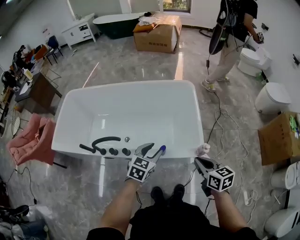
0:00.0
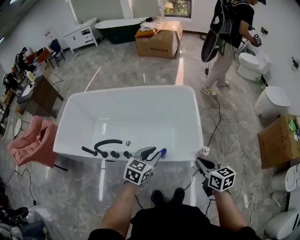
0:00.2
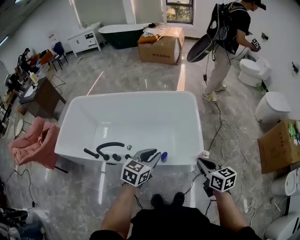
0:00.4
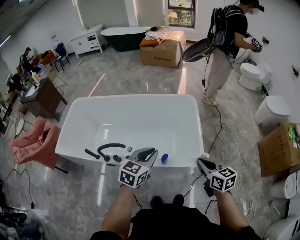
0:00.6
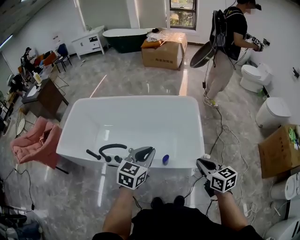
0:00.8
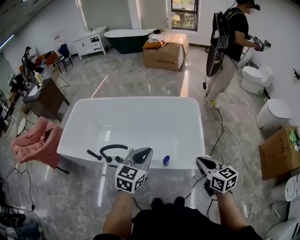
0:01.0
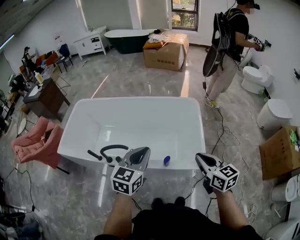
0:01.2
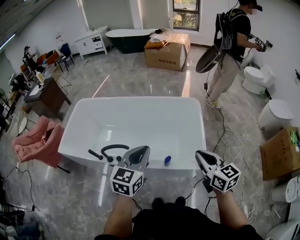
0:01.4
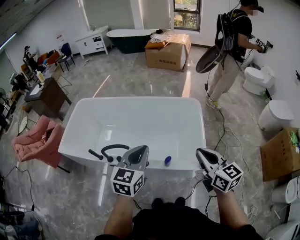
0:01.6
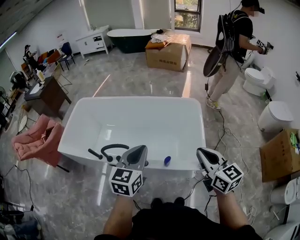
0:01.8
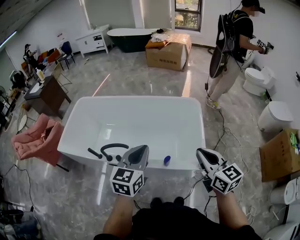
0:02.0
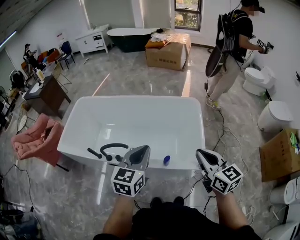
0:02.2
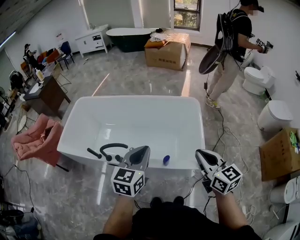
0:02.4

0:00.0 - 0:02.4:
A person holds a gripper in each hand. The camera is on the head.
0:00.0 - 0:01.2: The left gripper moves upward, about 20 cm, and closes. The right gripper moves upward, roughly 10 cm.
0:01.2 - 0:02.4: The right gripper moves upward, roughly 5 cm.

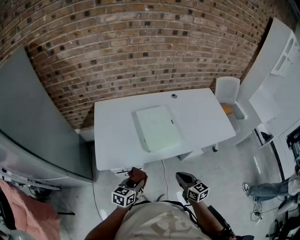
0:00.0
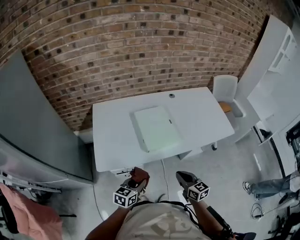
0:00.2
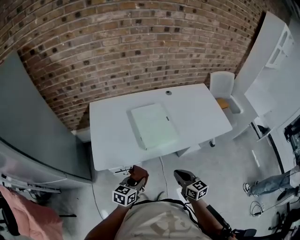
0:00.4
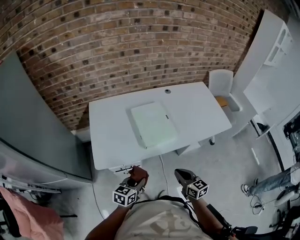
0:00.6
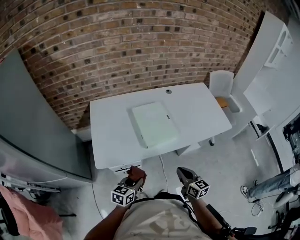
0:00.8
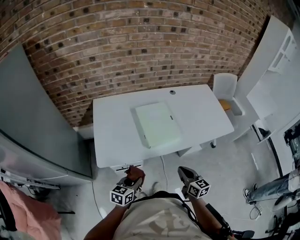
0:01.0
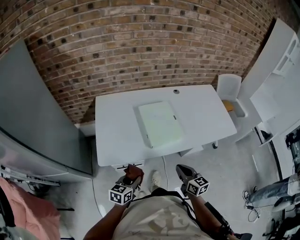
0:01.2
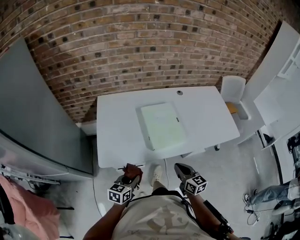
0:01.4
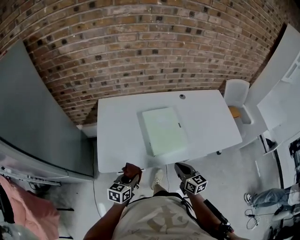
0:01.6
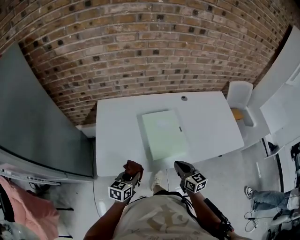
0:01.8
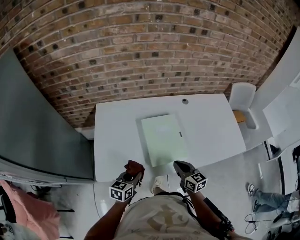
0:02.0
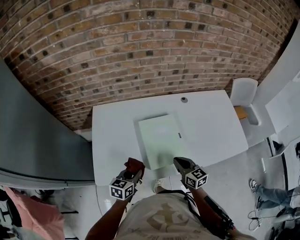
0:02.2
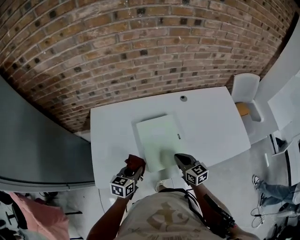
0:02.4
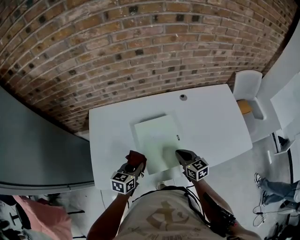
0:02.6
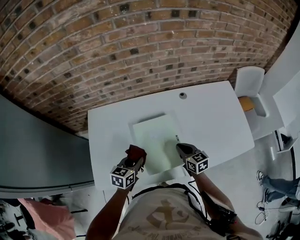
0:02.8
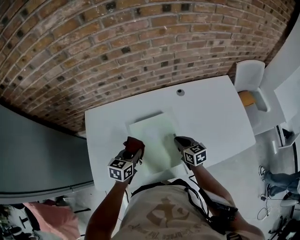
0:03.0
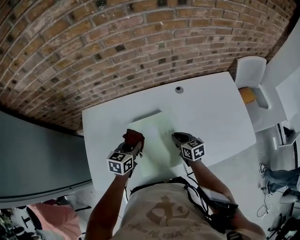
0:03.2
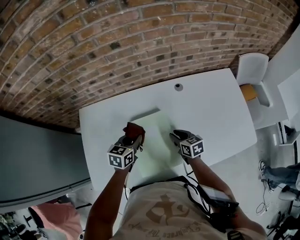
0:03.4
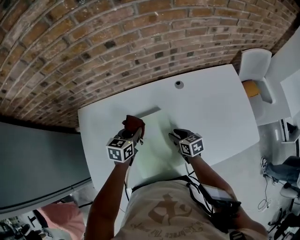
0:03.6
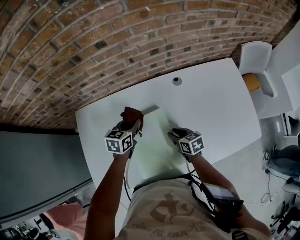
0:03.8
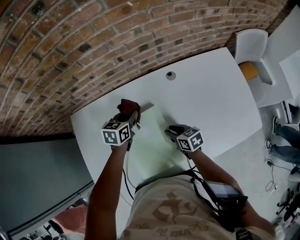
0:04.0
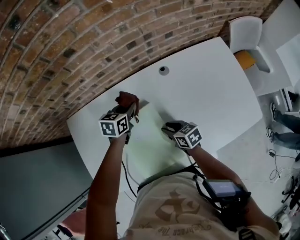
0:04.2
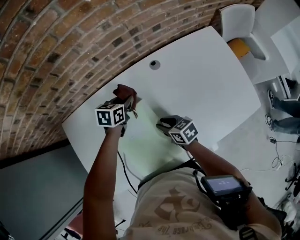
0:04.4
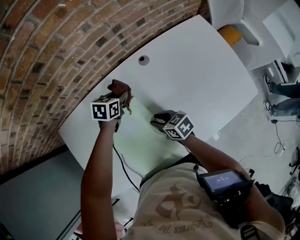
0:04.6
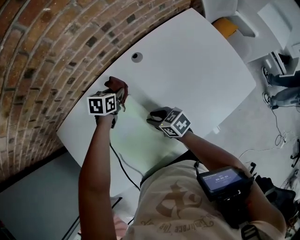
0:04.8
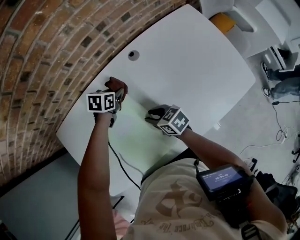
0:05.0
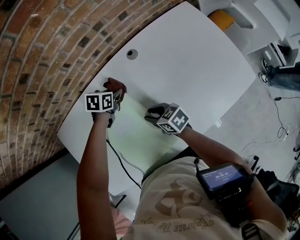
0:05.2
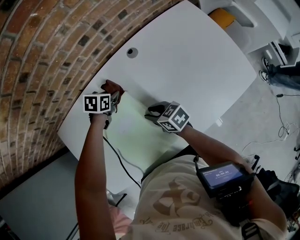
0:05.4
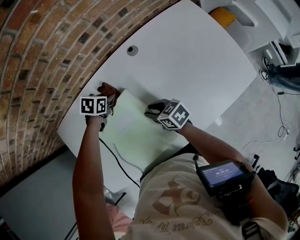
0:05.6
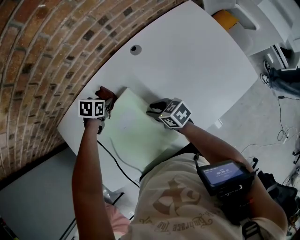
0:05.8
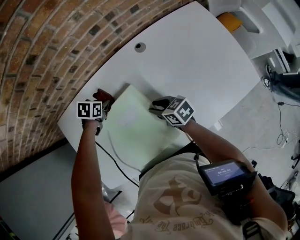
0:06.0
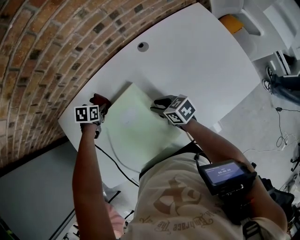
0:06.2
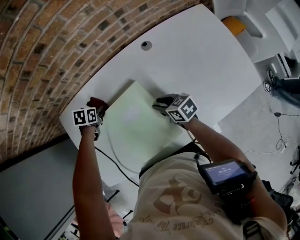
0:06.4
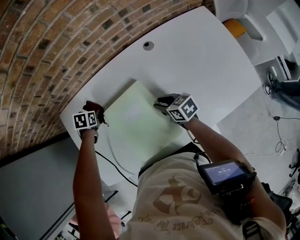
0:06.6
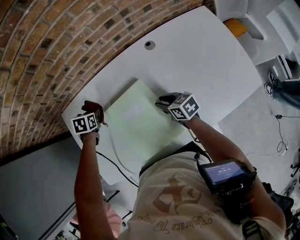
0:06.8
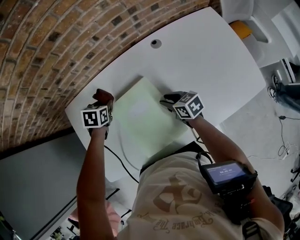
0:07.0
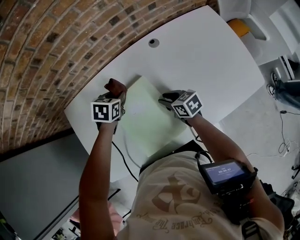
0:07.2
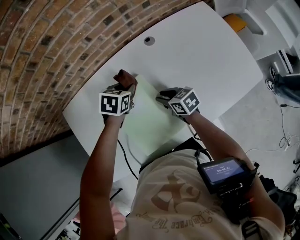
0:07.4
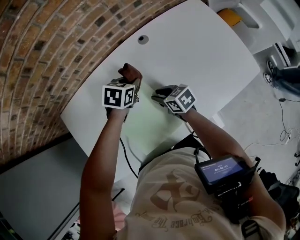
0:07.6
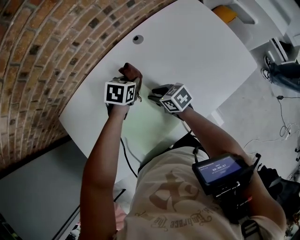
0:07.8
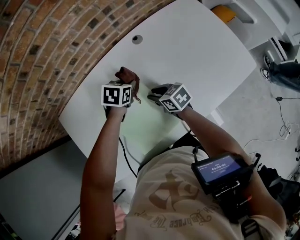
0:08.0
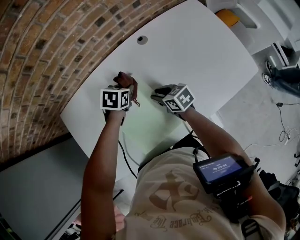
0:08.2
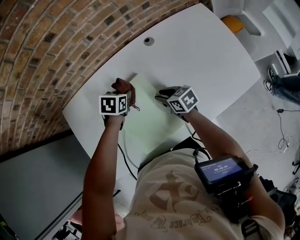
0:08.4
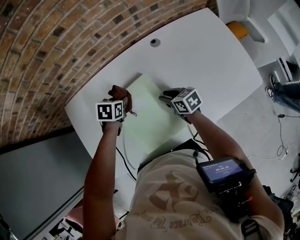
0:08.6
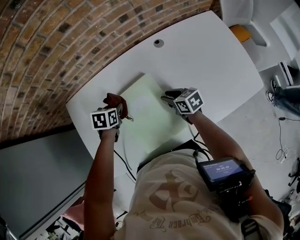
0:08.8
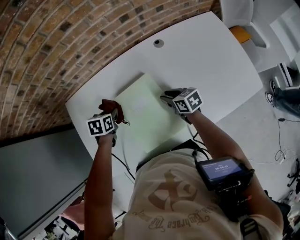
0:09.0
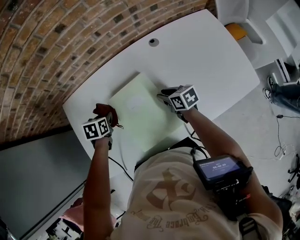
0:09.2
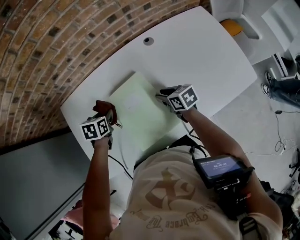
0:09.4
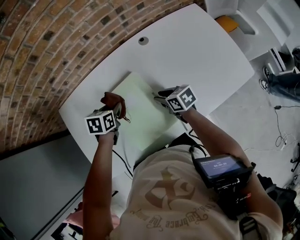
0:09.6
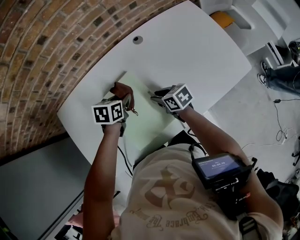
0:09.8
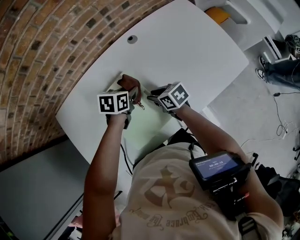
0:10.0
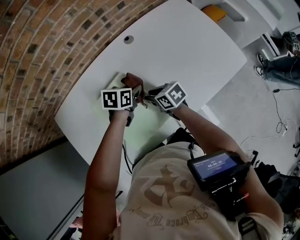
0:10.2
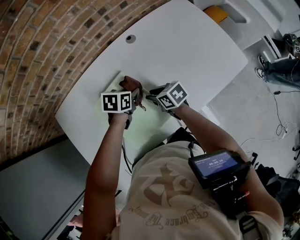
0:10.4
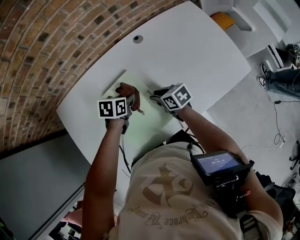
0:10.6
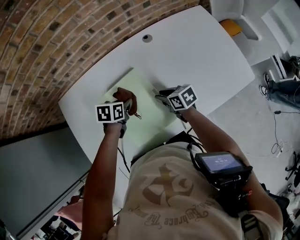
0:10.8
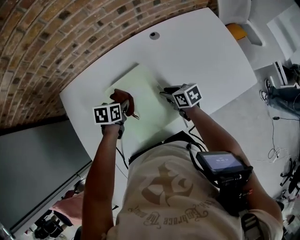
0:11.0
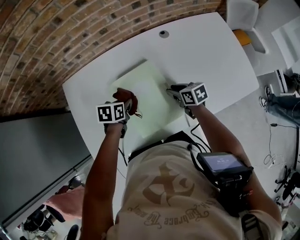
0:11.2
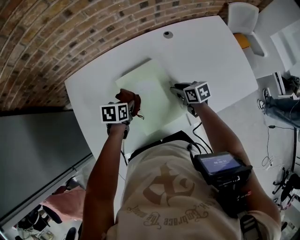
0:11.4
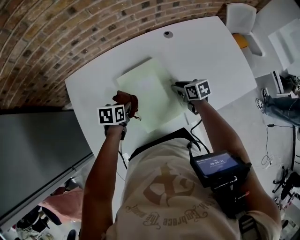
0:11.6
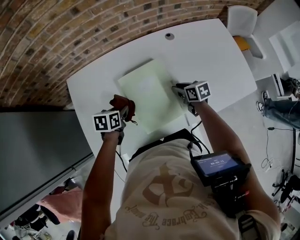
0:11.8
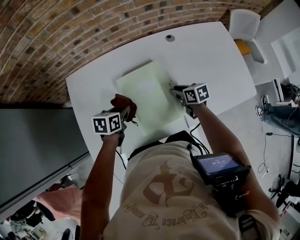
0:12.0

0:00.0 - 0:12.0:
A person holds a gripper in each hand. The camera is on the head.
0:00.0 - 0:01.6: The left gripper travels forward and to the left by roughly 5 cm, while the right gripper is displaced forward by roughly 10 cm.
0:01.6 - 0:03.0: Both grippers move forward, about 30 cm.
0:03.0 - 0:04.4: The right gripper goes approximately 5 cm downward, and opens up. Meanwhile the left gripper travels forward and to the right by approximately 25 cm.
0:04.4 - 0:06.0: The left gripper moves some 15 cm, and rotates approximately 30 degrees.
0:06.0 - 0:07.6: The left gripper moves about 15 cm.
0:07.6 - 0:09.0: The left gripper heads to the left, covering approximately 20 cm, and turns by about 30 degrees.
0:09.0 - 0:10.4: The left gripper ends up about 20 cm from where it was, and changes its angle by roughly 20 degrees.
0:10.4 - 0:12.0: The left gripper moves to the left and backward, some 20 cm, and rotates some 20 degrees.

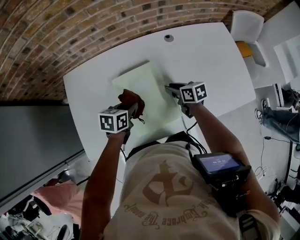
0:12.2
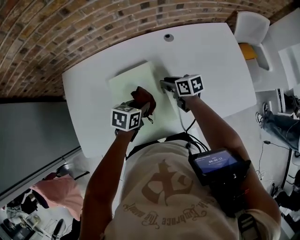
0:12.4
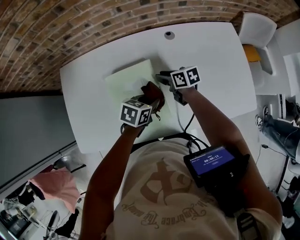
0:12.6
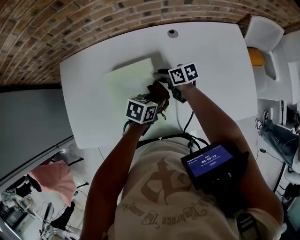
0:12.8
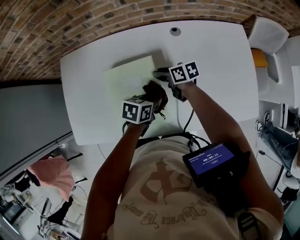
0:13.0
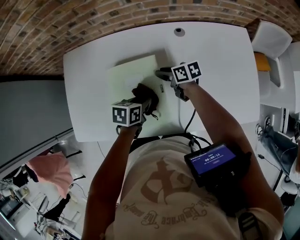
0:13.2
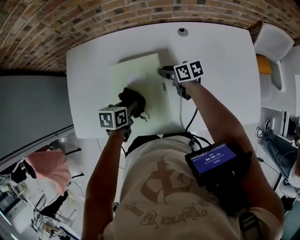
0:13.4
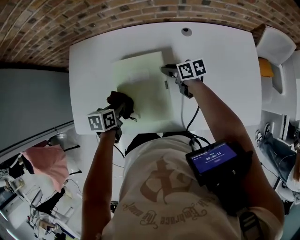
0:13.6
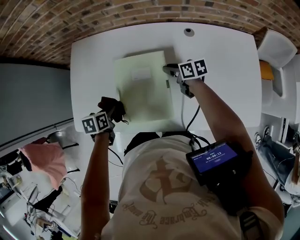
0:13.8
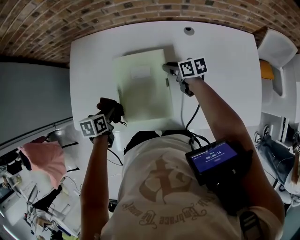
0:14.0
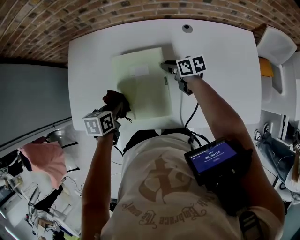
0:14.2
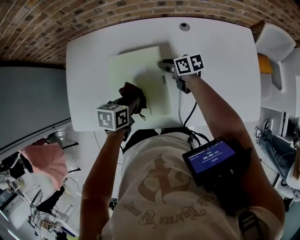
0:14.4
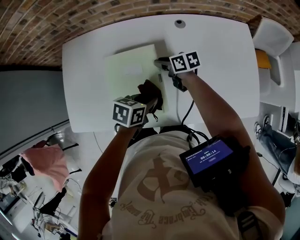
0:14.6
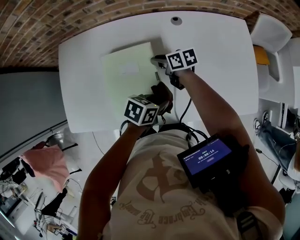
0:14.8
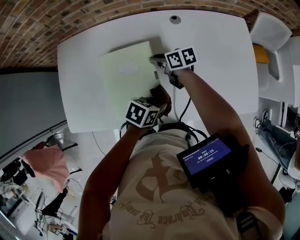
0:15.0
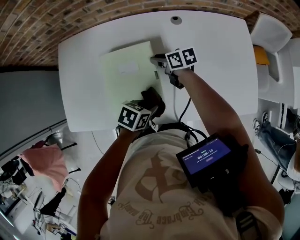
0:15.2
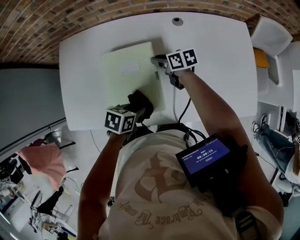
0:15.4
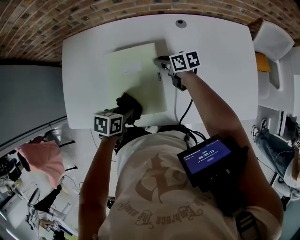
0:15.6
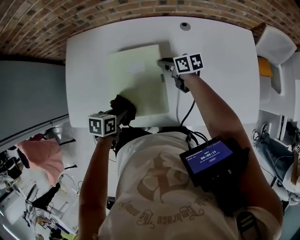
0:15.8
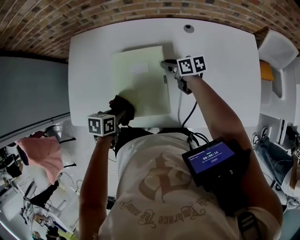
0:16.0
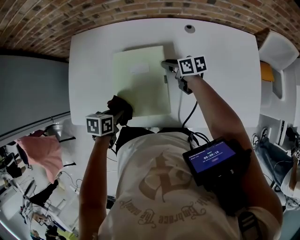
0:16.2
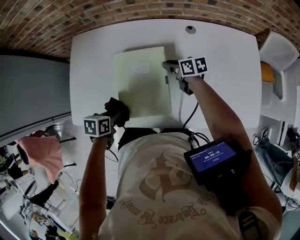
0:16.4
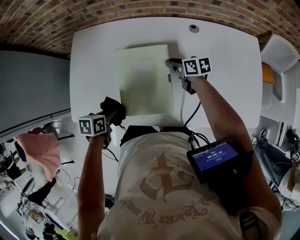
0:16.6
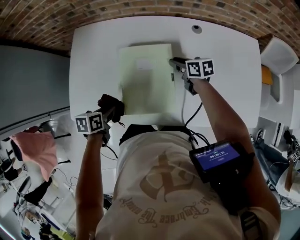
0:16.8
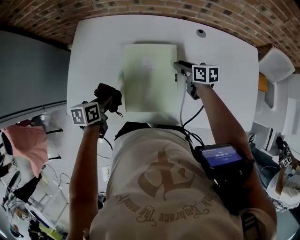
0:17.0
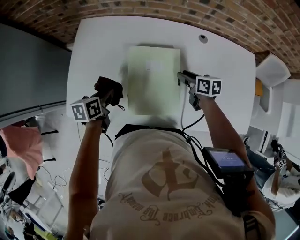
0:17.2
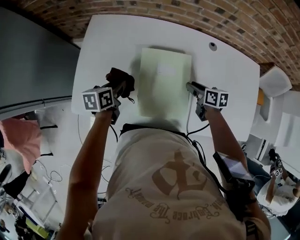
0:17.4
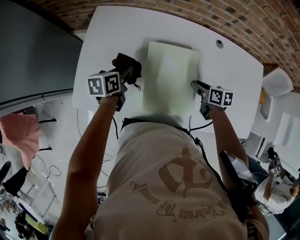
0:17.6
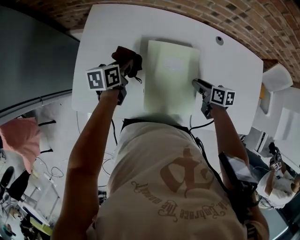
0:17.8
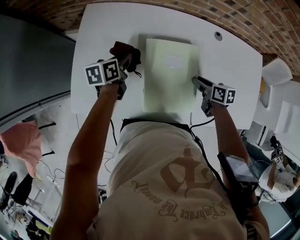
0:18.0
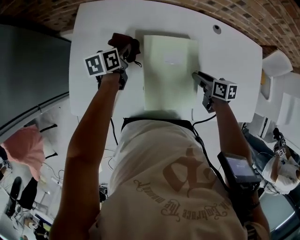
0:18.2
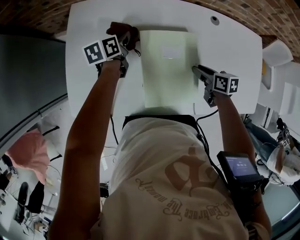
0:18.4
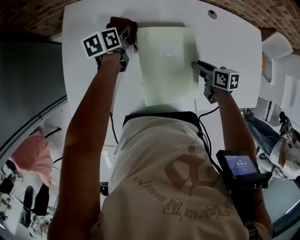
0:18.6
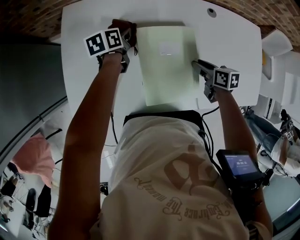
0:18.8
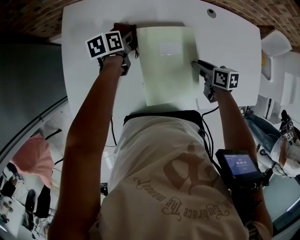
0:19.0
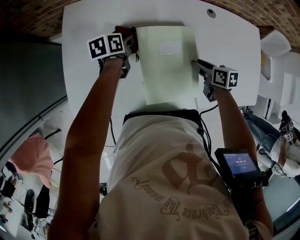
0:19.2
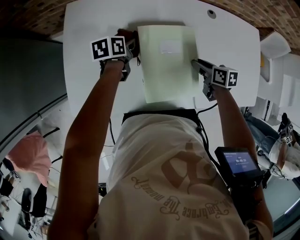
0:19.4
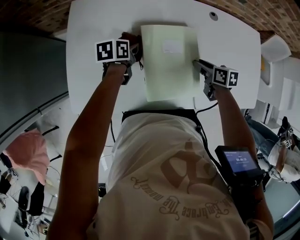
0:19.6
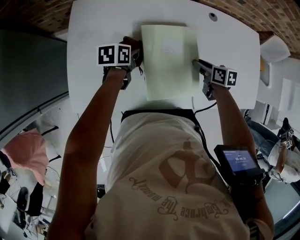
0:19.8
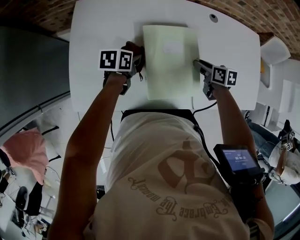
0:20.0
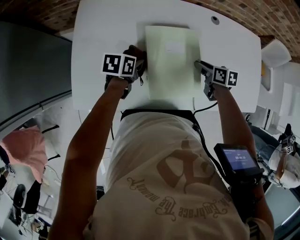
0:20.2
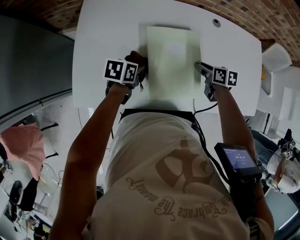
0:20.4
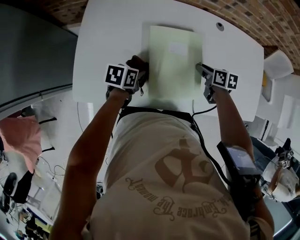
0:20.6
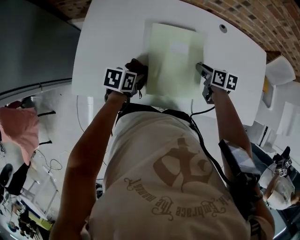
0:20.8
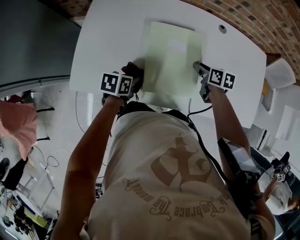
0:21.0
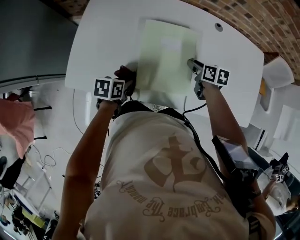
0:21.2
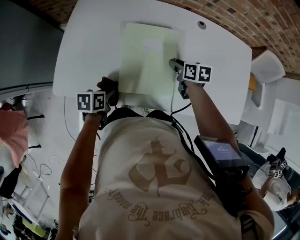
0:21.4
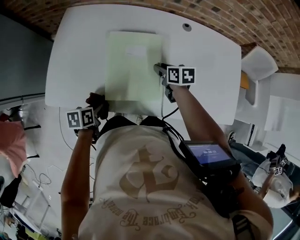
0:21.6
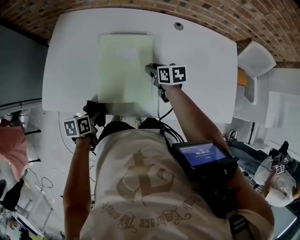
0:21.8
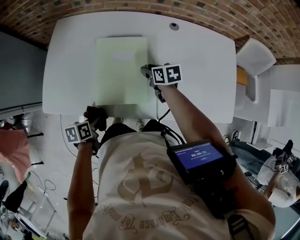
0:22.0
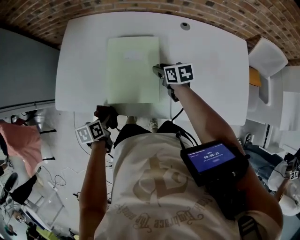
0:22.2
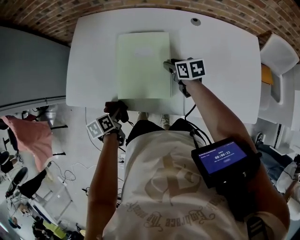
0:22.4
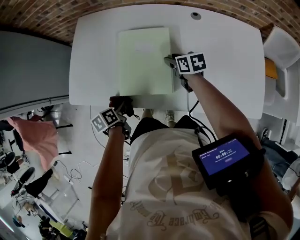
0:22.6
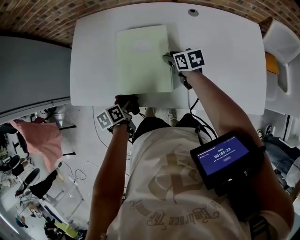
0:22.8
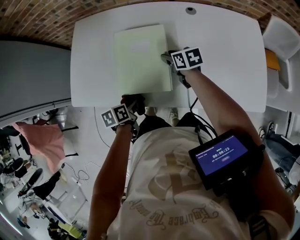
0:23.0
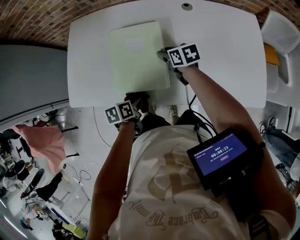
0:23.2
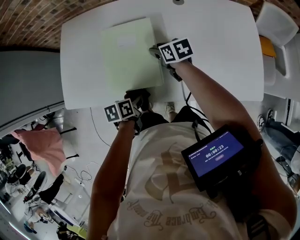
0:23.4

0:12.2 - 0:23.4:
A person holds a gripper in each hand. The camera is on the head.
0:12.2 - 0:13.8: The left gripper ends up about 15 cm from where it was, and turns by roughly 40 degrees, while the right gripper ends up approximately 10 cm from where it was.
0:13.8 - 0:15.4: The left gripper rotates some 30 degrees.
0:15.4 - 0:17.0: The left gripper changes place by approximately 20 cm, and changes its angle by approximately 30 degrees.
0:17.0 - 0:18.6: The right gripper moves backward, approximately 5 cm; the left gripper shifts about 25 cm forward.
0:18.6 - 0:20.2: The left gripper travels backward by about 15 cm, and turns by some 30 degrees.
0:20.2 - 0:21.8: The left gripper heads backward, covering about 20 cm, and turns by approximately 20 degrees.
0:21.8 - 0:23.4: The left gripper goes about 15 cm to the right.
